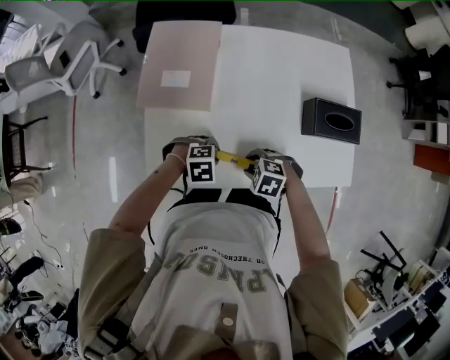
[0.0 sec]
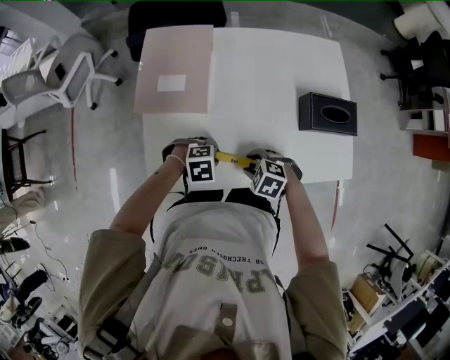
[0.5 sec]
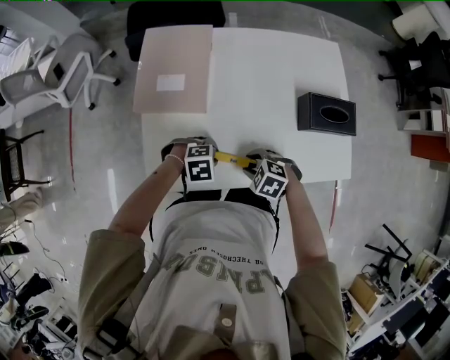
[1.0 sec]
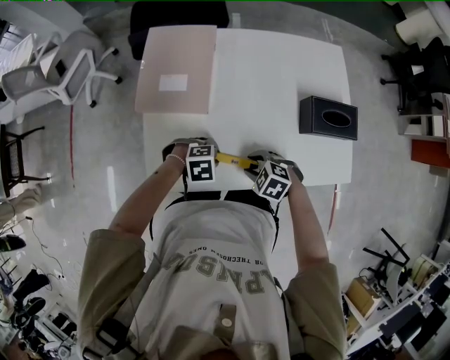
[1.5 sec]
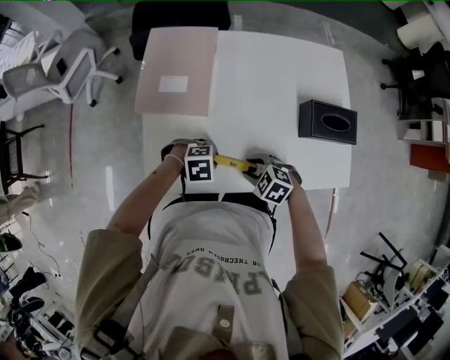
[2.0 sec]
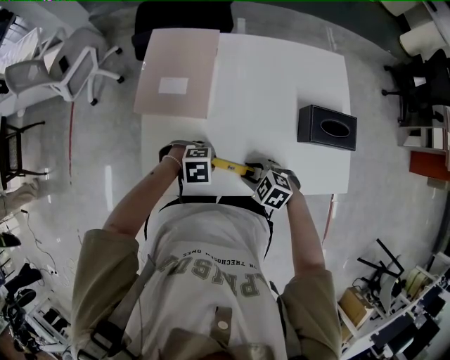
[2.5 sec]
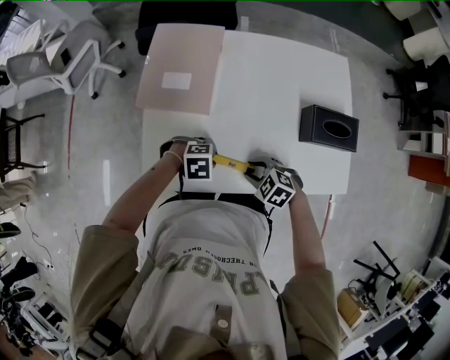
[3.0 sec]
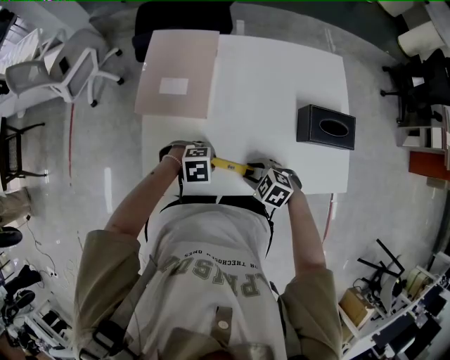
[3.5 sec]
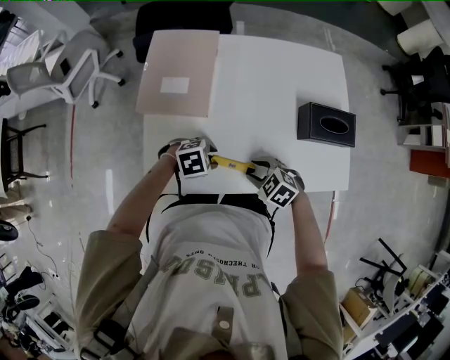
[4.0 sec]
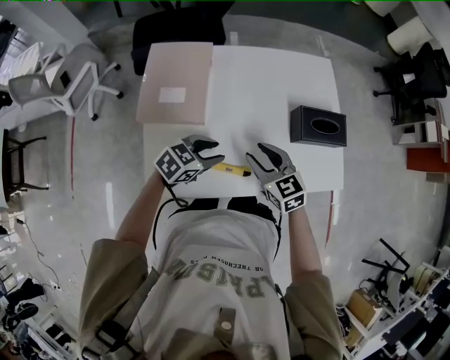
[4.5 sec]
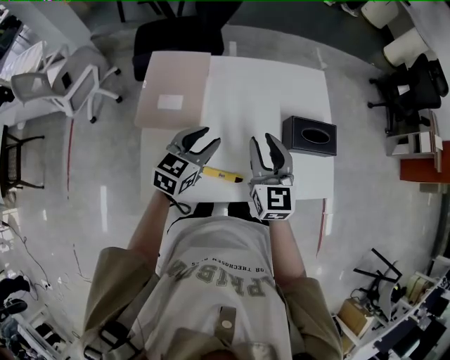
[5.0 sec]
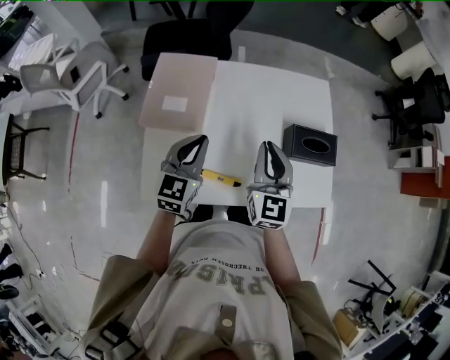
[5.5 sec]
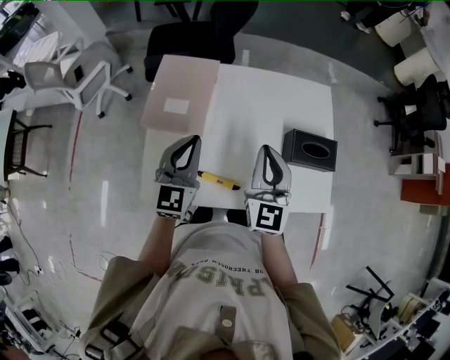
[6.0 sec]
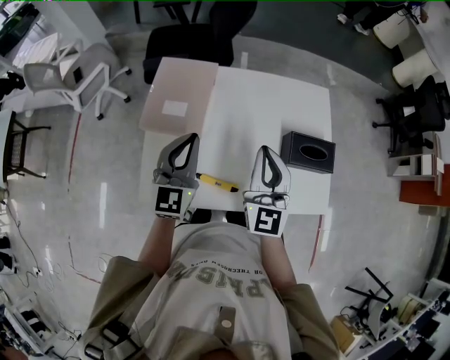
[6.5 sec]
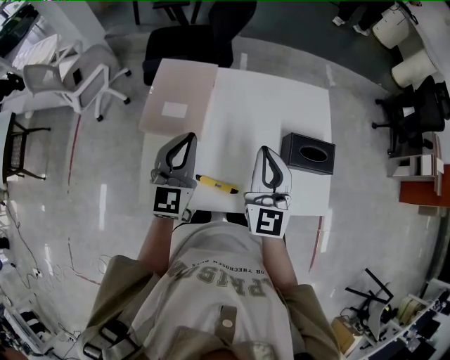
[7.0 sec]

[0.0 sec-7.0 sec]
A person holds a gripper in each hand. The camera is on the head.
0.0 sec to 2.0 sec: The grippers stay close to where they were, moving slightly.
2.0 sec to 3.5 sec: Both grippers stay about where they are.
3.5 sec to 5.0 sec: The grippers both shift upward by roughly 25 cm. The right gripper angles its fingers upward, by roughly 50 degrees; the left gripper points its fingers about 40 degrees further upward.
5.0 sec to 7.0 sec: The left gripper heads upward and to the left, covering about 10 cm, turns by approximately 40 degrees, and closes up, while the right gripper heads upward, covering about 10 cm, and closes.

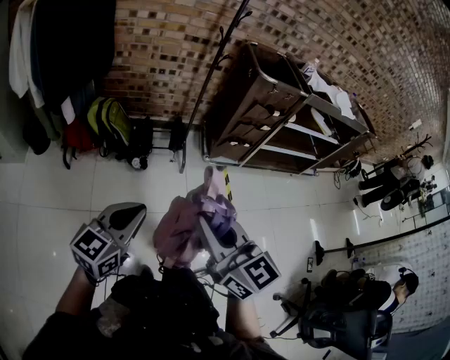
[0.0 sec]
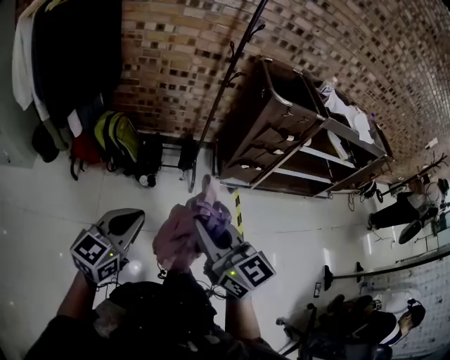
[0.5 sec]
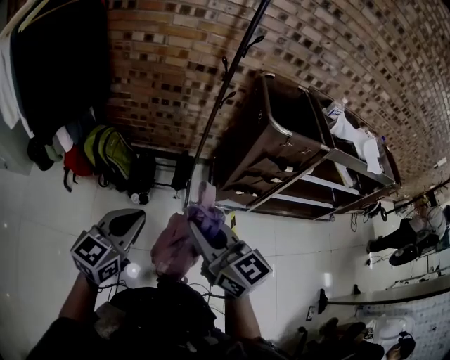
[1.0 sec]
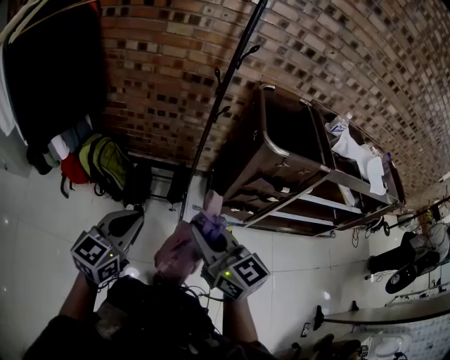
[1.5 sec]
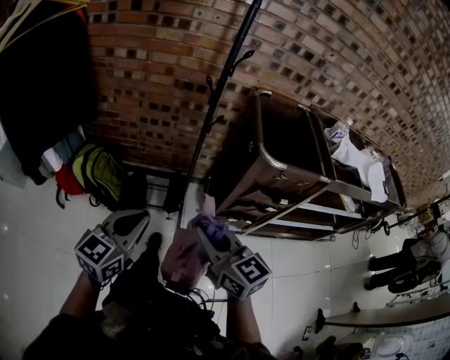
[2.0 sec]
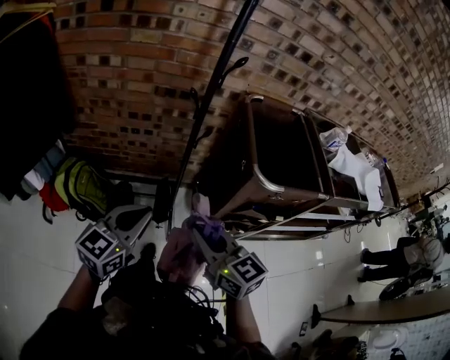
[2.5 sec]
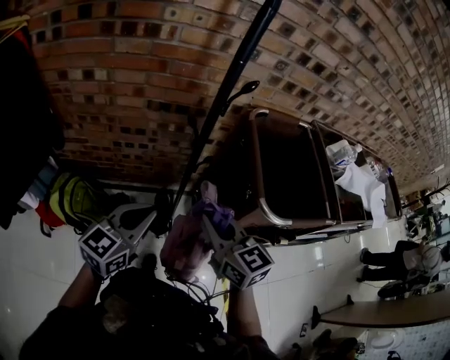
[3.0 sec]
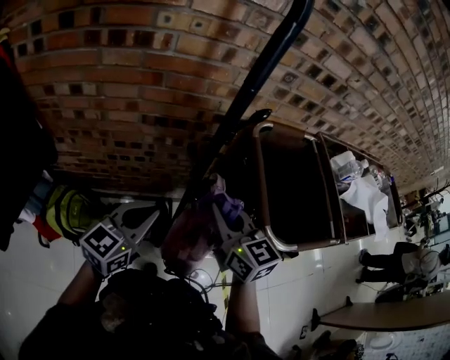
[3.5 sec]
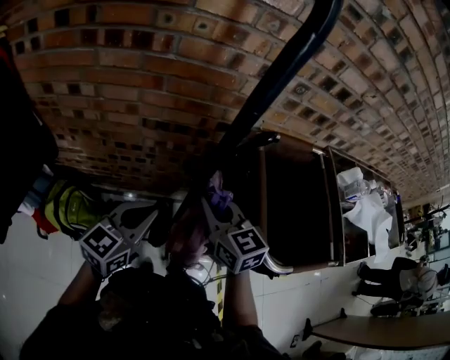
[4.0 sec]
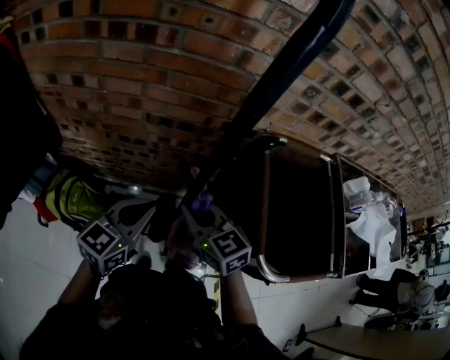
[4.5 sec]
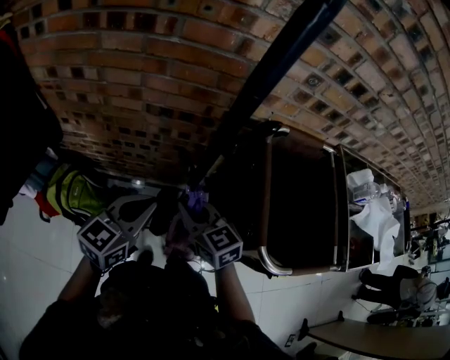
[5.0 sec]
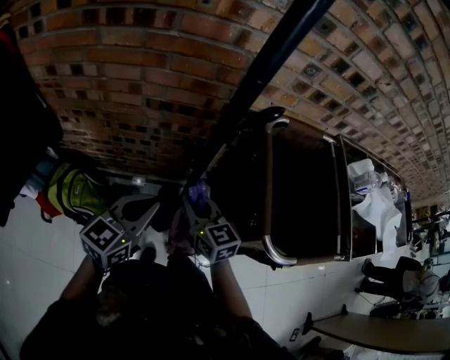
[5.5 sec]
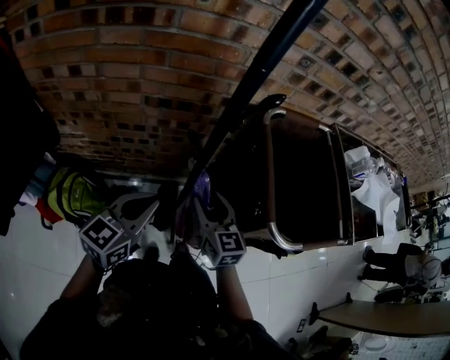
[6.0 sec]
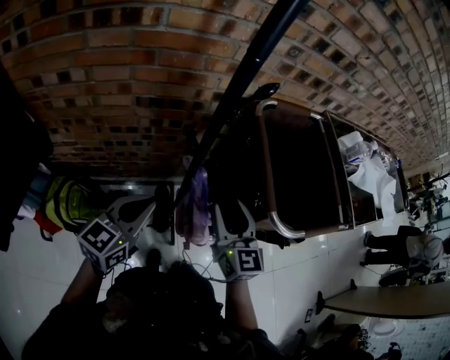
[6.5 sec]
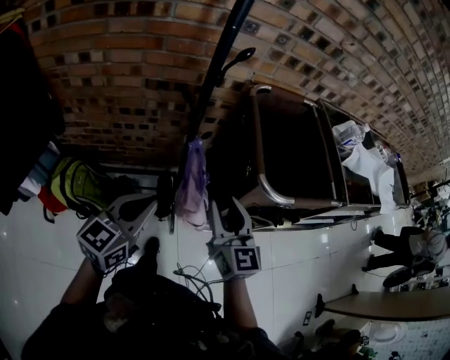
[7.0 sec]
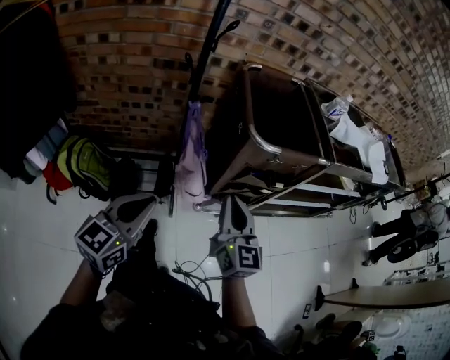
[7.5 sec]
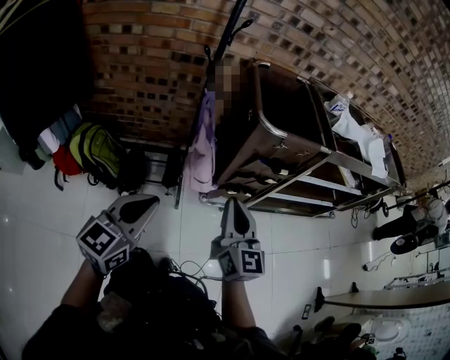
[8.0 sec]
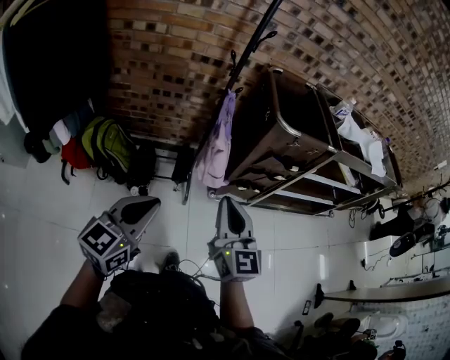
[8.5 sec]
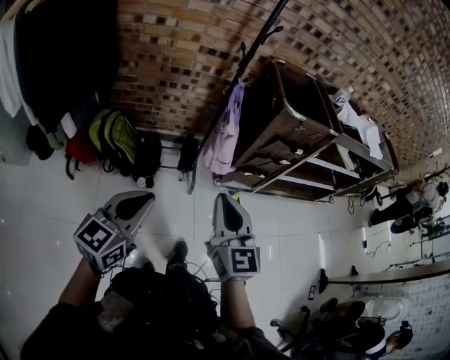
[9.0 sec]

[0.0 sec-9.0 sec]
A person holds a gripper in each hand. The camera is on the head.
0.0 sec to 2.0 sec: Both grippers are carried forward and to the right, about 50 cm.
2.0 sec to 4.5 sec: Both grippers are carried forward, about 40 cm.
4.5 sec to 7.0 sec: The right gripper heads backward and to the right, covering roughly 20 cm, turns by about 40 degrees, and opens. The left gripper travels backward by approximately 20 cm.
7.0 sec to 9.0 sec: The two grippers travel together, backward, some 50 cm. The right gripper closes up.

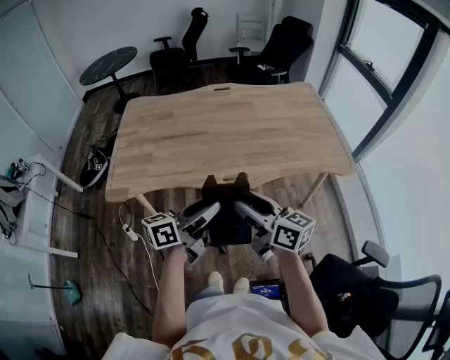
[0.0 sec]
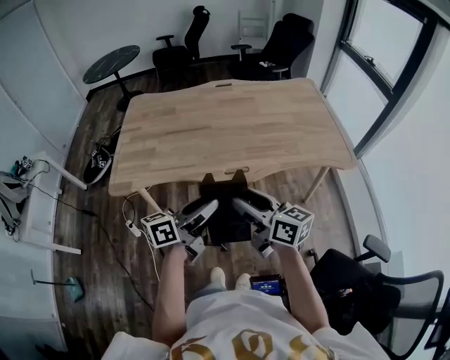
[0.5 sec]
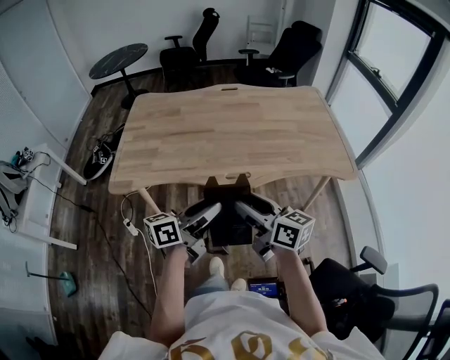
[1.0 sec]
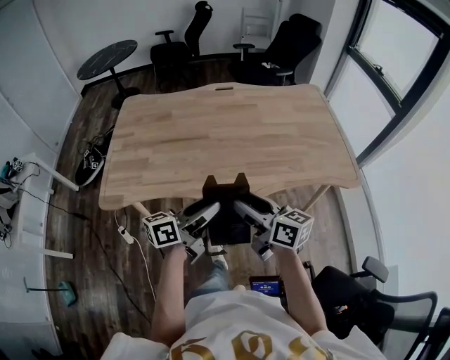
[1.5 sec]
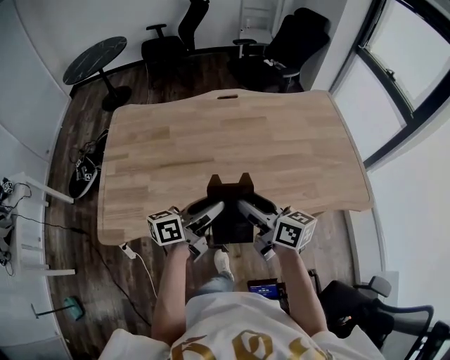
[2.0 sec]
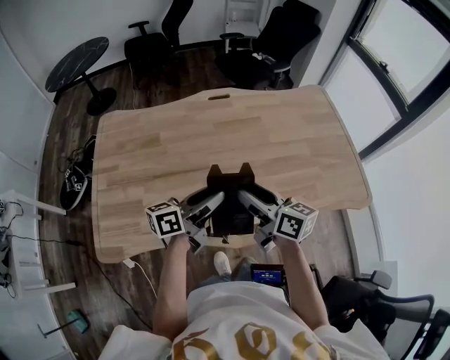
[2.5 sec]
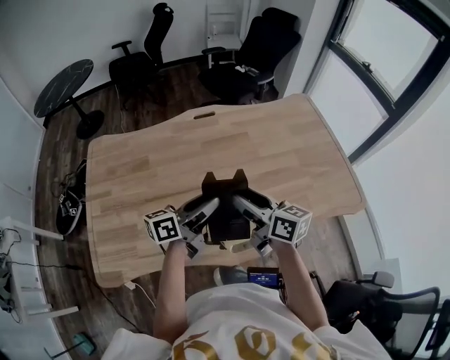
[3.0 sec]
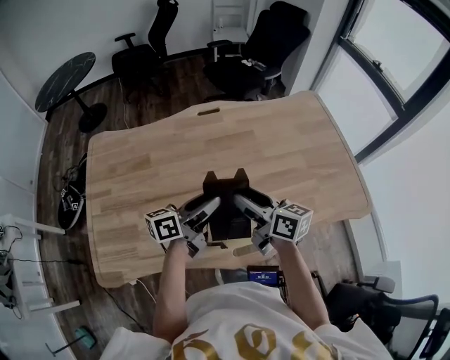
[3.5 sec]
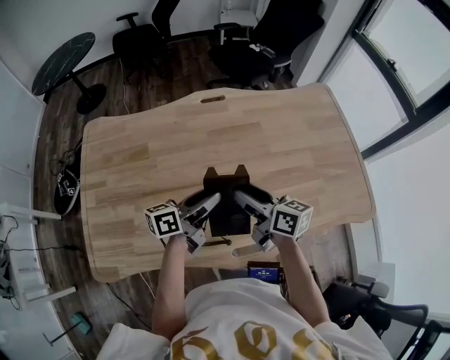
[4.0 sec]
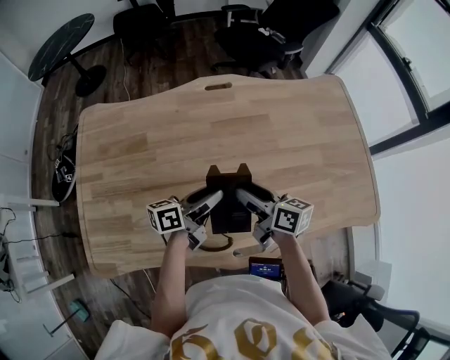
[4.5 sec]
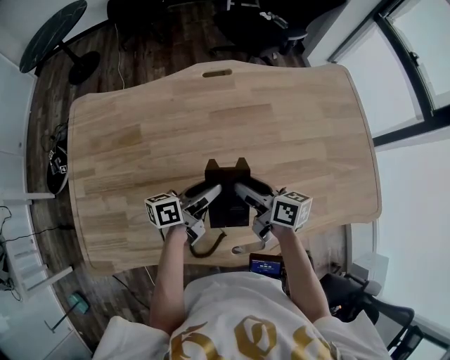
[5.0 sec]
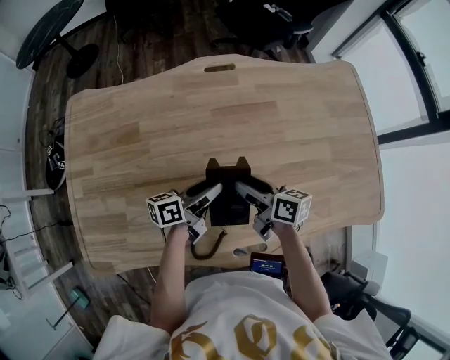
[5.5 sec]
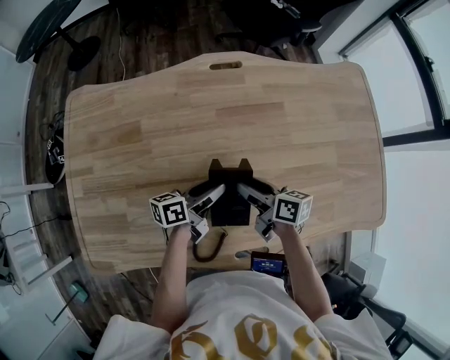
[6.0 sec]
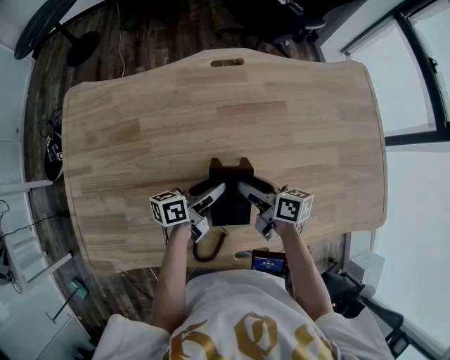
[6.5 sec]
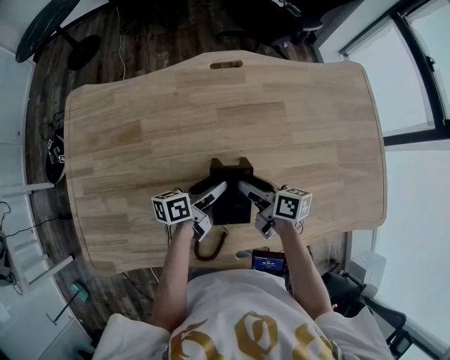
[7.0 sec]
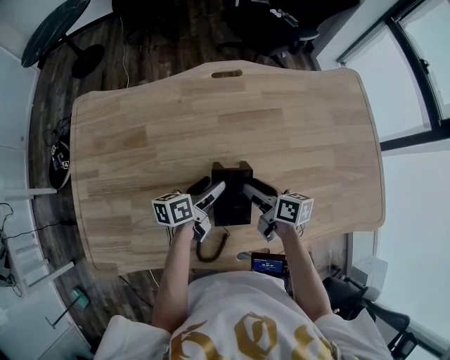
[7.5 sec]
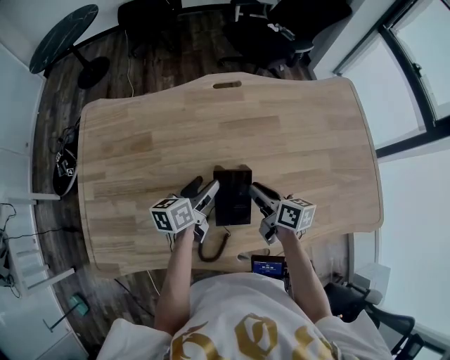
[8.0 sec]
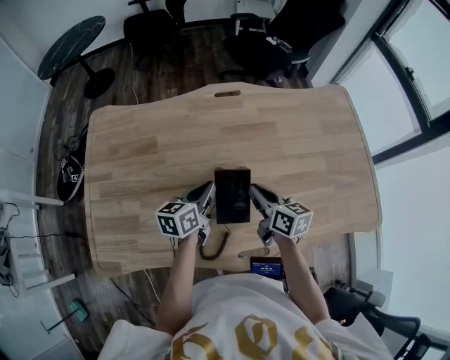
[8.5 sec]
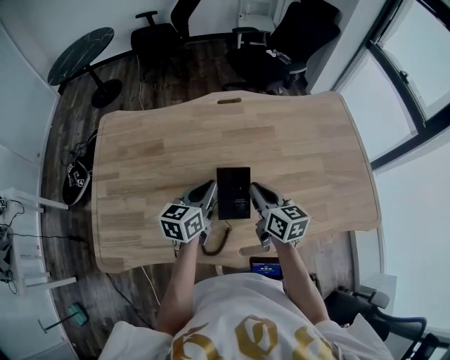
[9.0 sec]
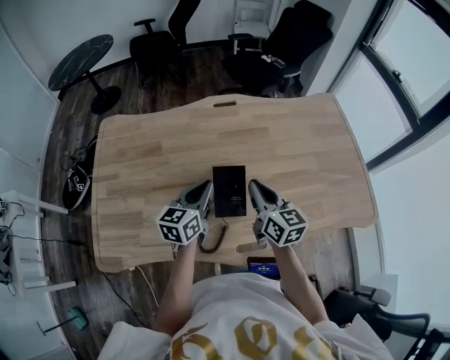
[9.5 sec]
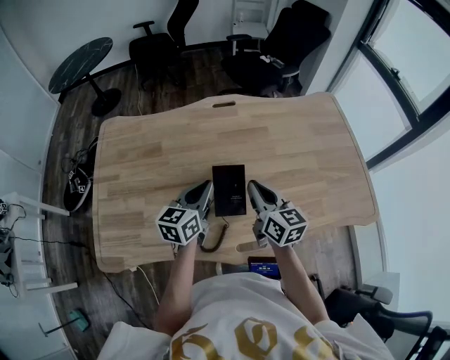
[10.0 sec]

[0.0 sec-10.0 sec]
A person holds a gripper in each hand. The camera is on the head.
0.0 sec to 2.0 sec: Both grippers move forward, approximately 25 cm.
2.0 sec to 4.0 sec: Both grippers travel together forward, approximately 15 cm.
4.0 sec to 6.0 sec: The grippers both shift downward by approximately 15 cm.
6.0 sec to 8.0 sec: The right gripper closes up. Meanwhile the left gripper moves roughly 5 cm, and turns by roughly 20 degrees.
8.0 sec to 10.0 sec: Both grippers move upward and backward, about 15 cm. The left gripper swivels some 30 degrees, and closes, while the right gripper changes its angle by roughly 30 degrees.

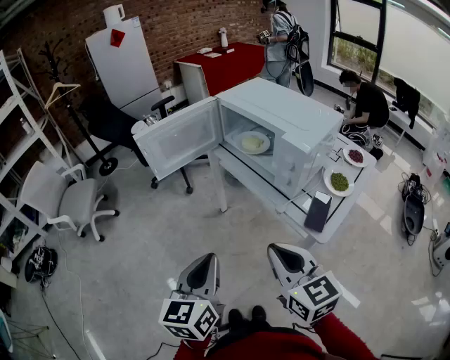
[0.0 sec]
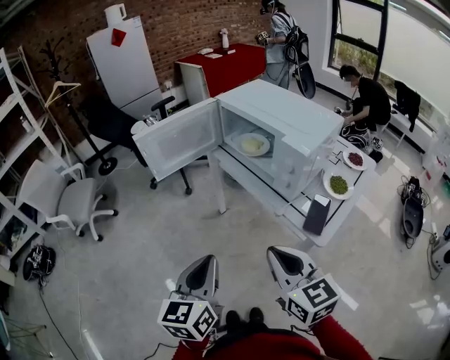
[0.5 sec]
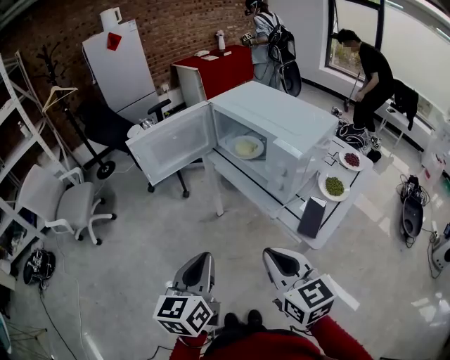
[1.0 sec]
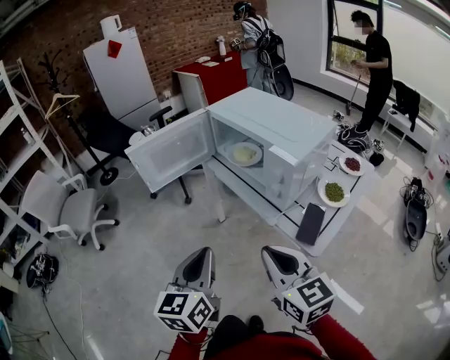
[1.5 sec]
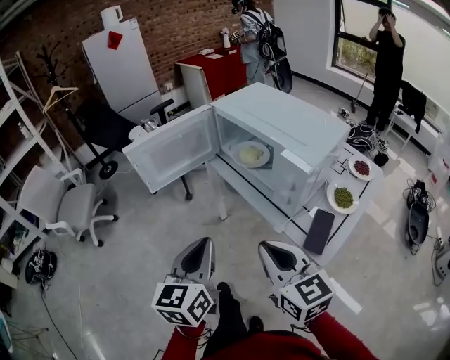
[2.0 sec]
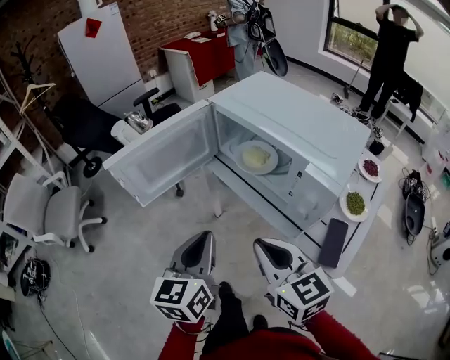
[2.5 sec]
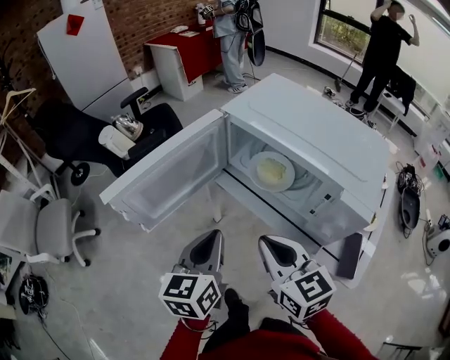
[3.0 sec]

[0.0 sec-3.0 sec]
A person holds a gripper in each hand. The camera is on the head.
0.0 sec to 1.5 sec: The left gripper ends up some 5 cm from where it was.
1.5 sec to 3.0 sec: Both grippers move forward, approximately 25 cm.
